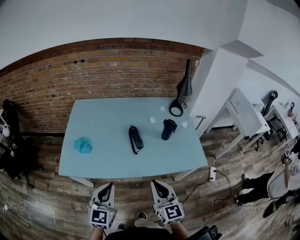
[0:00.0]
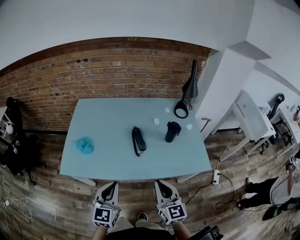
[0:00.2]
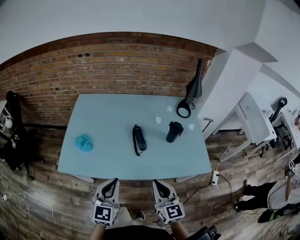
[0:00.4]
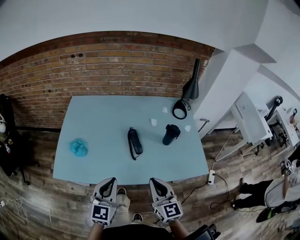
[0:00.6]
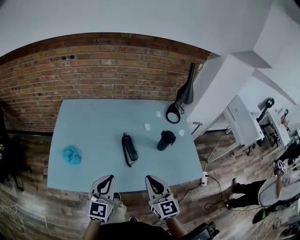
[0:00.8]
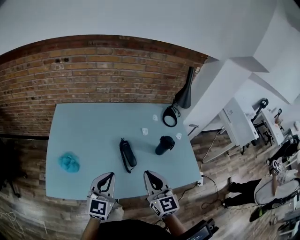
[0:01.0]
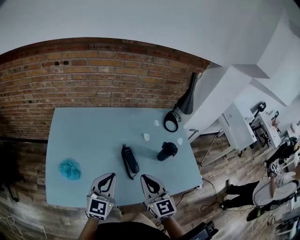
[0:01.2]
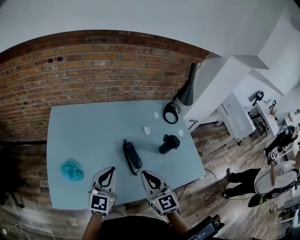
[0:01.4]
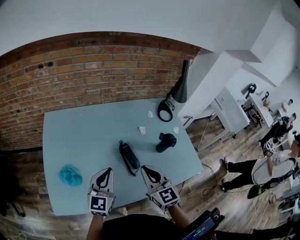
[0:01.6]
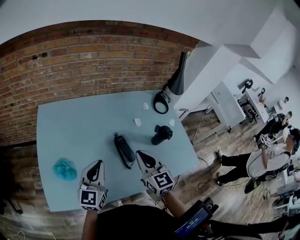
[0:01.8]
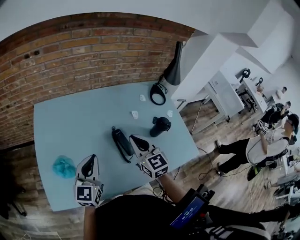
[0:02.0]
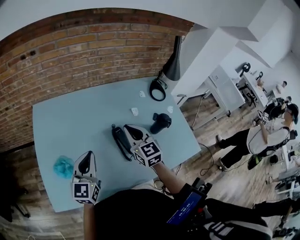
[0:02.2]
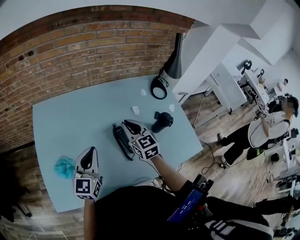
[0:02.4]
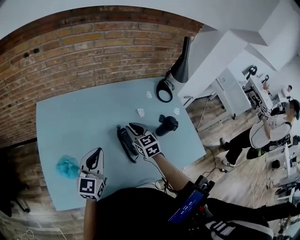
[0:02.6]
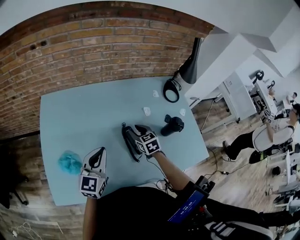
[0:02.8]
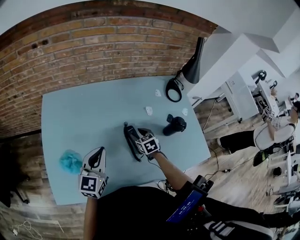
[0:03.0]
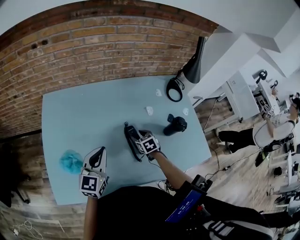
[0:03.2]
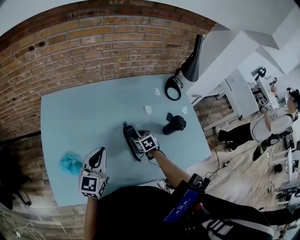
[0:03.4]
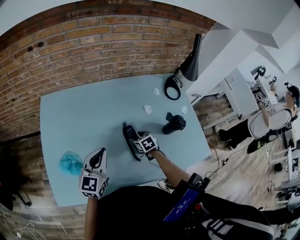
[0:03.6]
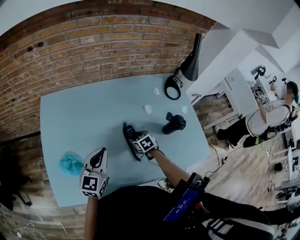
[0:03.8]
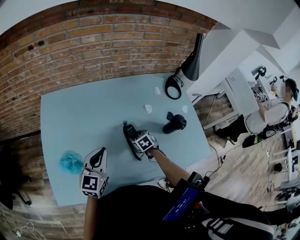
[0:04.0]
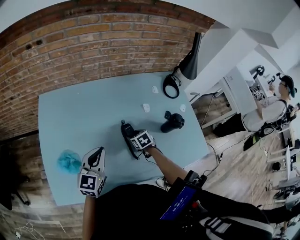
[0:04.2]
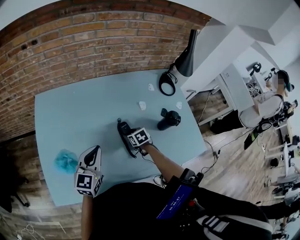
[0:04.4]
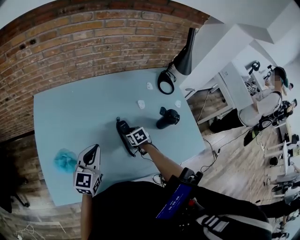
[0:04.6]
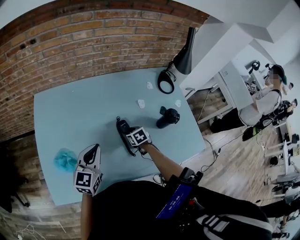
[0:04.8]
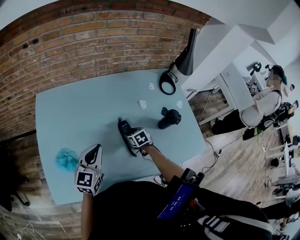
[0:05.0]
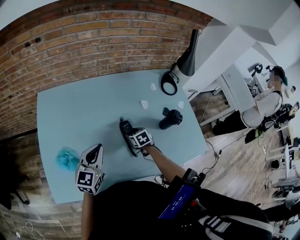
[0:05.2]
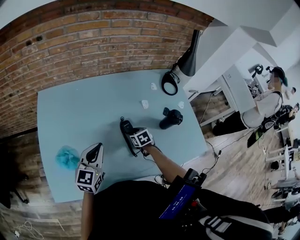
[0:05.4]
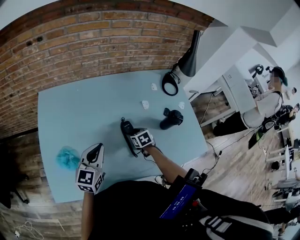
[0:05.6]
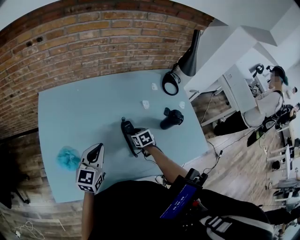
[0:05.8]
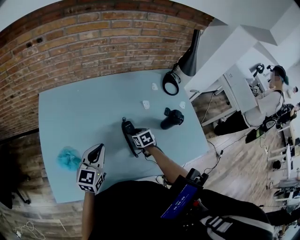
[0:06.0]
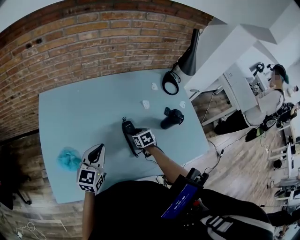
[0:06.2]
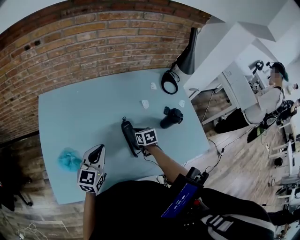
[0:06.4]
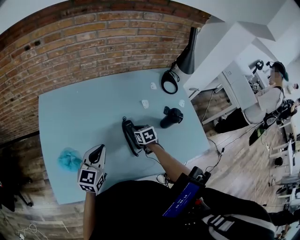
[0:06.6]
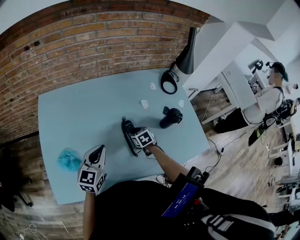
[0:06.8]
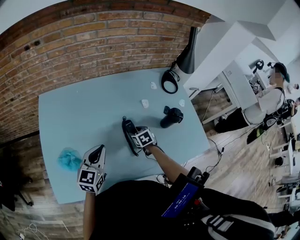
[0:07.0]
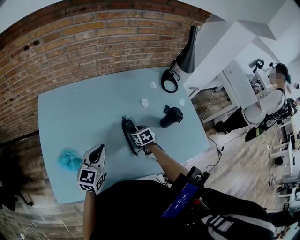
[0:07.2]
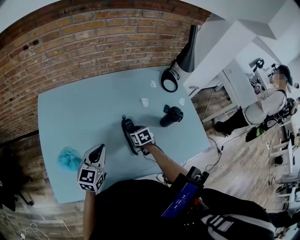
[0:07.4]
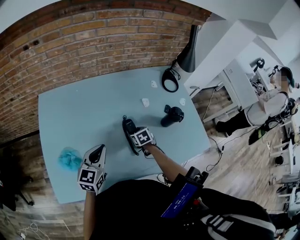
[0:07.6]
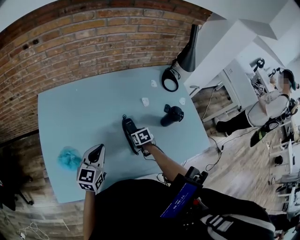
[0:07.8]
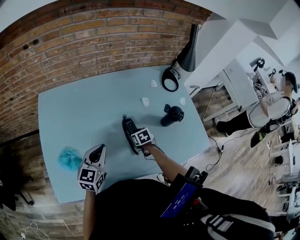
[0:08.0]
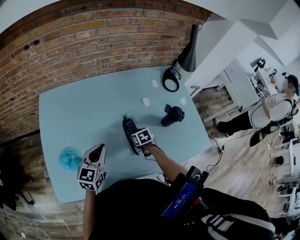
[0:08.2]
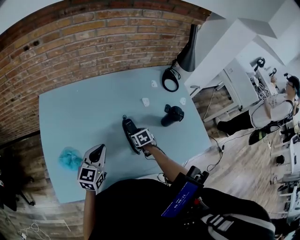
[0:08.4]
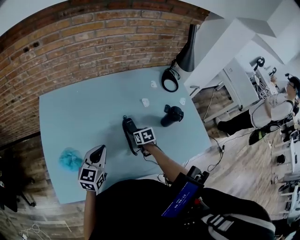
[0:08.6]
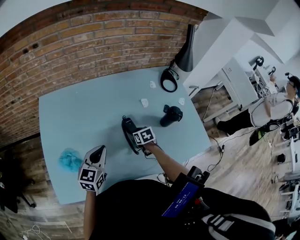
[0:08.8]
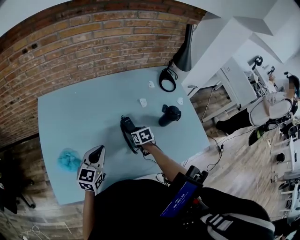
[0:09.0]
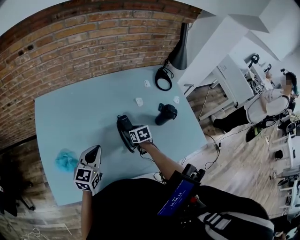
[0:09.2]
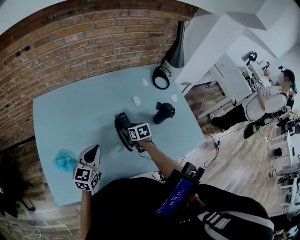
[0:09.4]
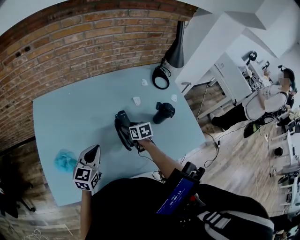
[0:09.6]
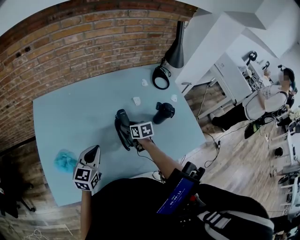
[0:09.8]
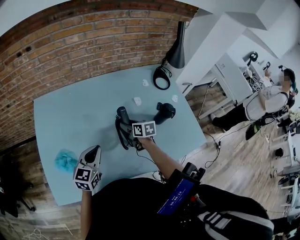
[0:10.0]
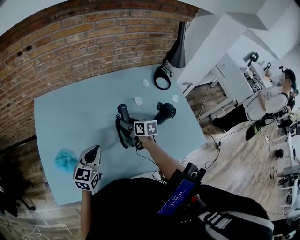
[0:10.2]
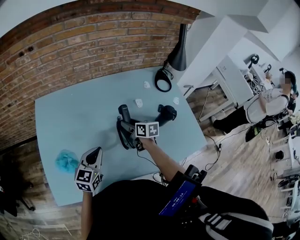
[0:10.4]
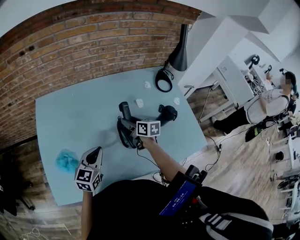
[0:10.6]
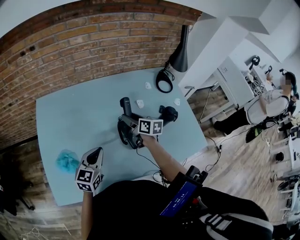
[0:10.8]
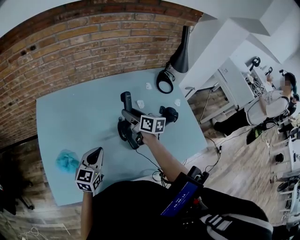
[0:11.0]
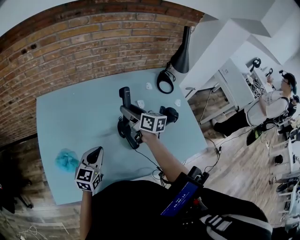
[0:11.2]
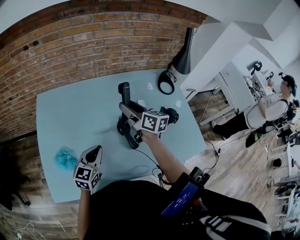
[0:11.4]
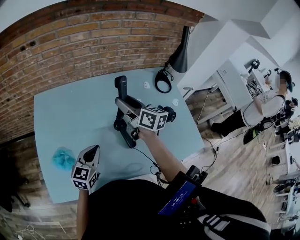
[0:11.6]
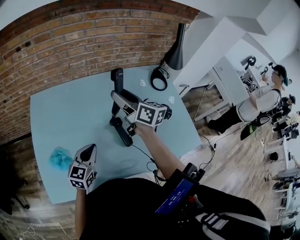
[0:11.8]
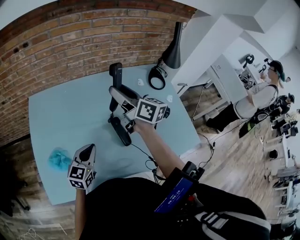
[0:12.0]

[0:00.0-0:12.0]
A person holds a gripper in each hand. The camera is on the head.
0:00.0 to 0:01.6: Both grippers travel together forward, some 30 cm.
0:01.6 to 0:03.0: The left gripper heads forward, covering some 5 cm. Meanwhile the right gripper travels downward and forward by some 30 cm, tips its fingers downward by roughly 30 degrees, and opens.
0:03.0 to 0:04.4: The right gripper goes approximately 5 cm downward.
0:04.4 to 0:06.0: There are only small adjustments of the grippers.
0:06.0 to 0:07.6: The right gripper closes, then reopens.
0:07.6 to 0:09.0: The grippers stay close to where they were, moving slightly.
0:09.0 to 0:10.4: The right gripper moves upward, about 10 cm, and changes its angle by some 30 degrees.
0:10.4 to 0:12.0: The right gripper moves upward, approximately 25 cm, and tilts its fingers approximately 30 degrees upward.

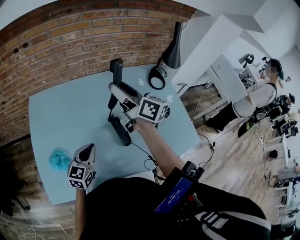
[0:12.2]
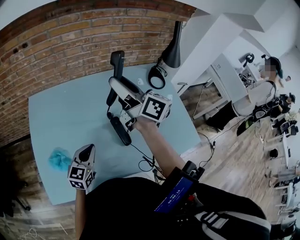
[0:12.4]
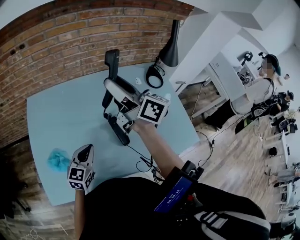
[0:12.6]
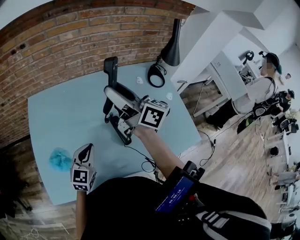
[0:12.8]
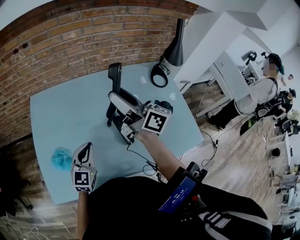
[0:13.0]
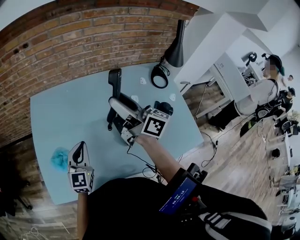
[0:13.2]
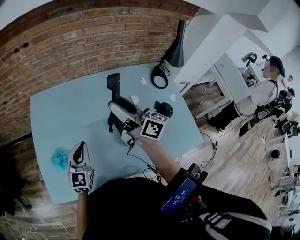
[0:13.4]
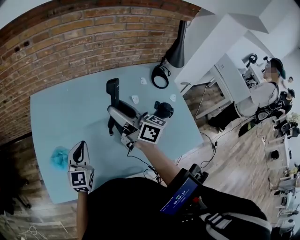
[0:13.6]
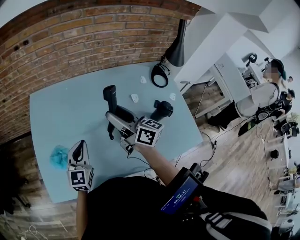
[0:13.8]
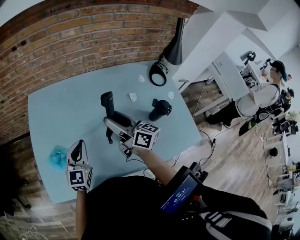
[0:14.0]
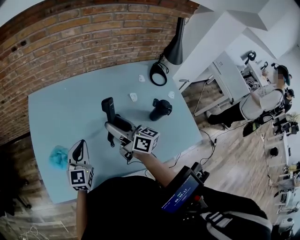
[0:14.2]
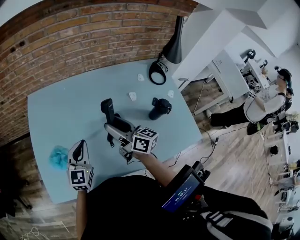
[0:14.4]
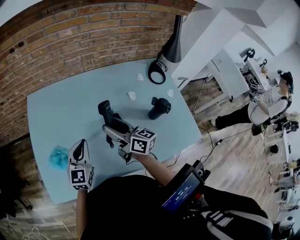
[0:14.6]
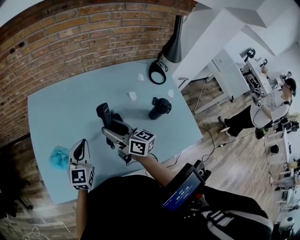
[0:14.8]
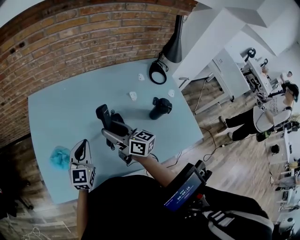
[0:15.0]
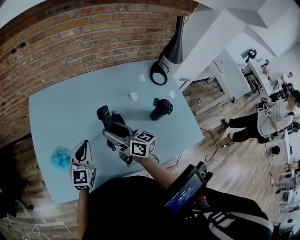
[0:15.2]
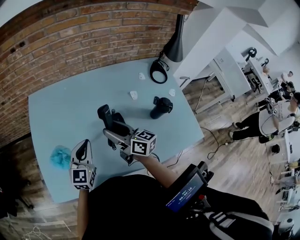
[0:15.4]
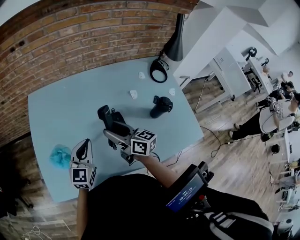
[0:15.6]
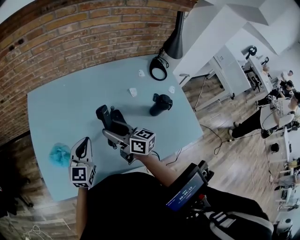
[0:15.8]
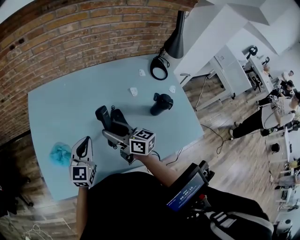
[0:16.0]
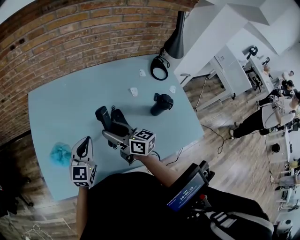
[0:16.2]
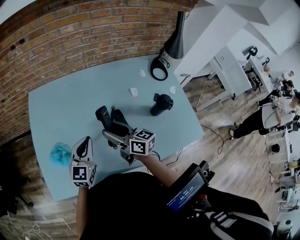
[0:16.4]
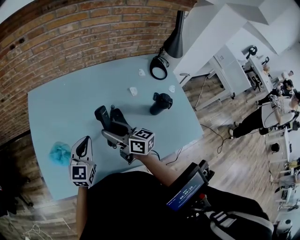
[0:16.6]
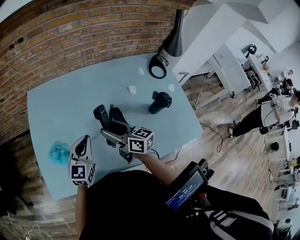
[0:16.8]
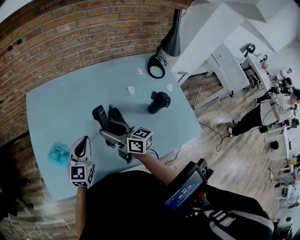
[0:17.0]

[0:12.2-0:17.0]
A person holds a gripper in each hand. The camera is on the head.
0:12.2 to 0:13.8: The right gripper is displaced downward and backward by roughly 10 cm. The left gripper ends up about 5 cm from where it was.
0:13.8 to 0:15.4: The right gripper is displaced downward by approximately 10 cm.
0:15.4 to 0:17.0: There are only small adjustments of the grippers.

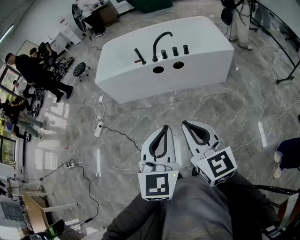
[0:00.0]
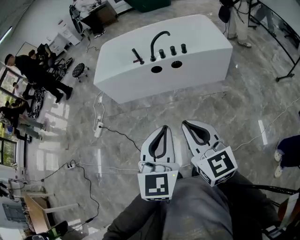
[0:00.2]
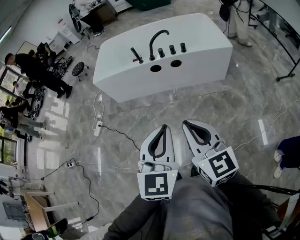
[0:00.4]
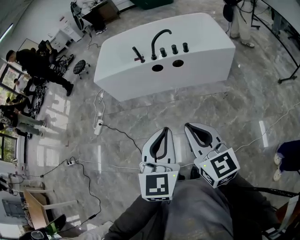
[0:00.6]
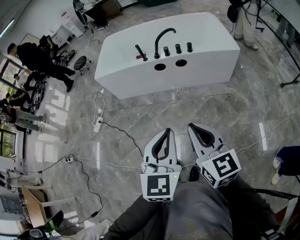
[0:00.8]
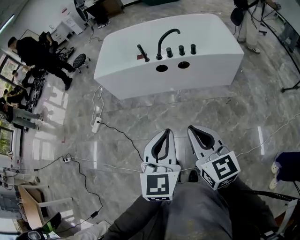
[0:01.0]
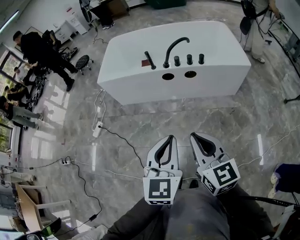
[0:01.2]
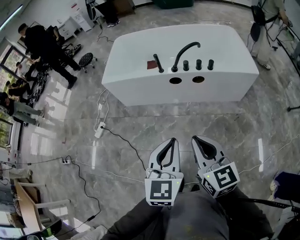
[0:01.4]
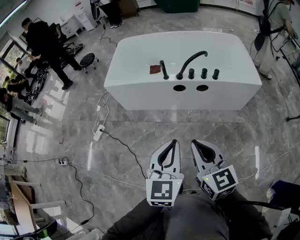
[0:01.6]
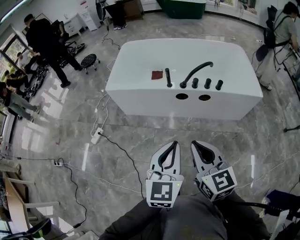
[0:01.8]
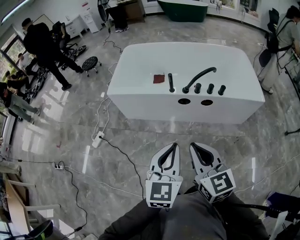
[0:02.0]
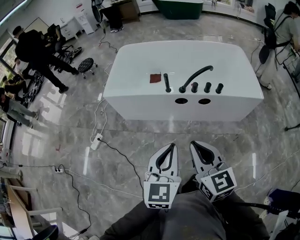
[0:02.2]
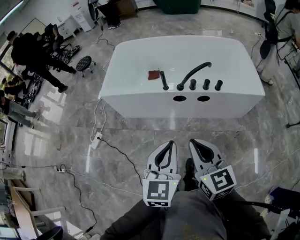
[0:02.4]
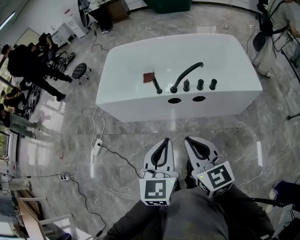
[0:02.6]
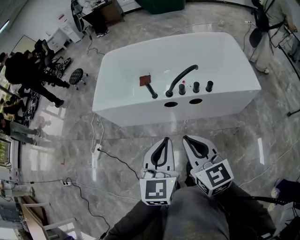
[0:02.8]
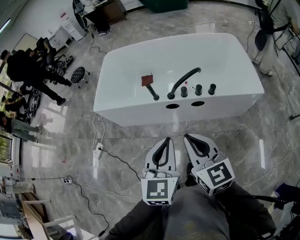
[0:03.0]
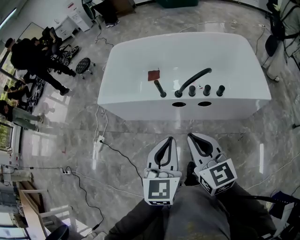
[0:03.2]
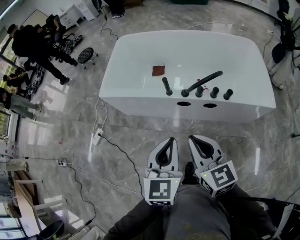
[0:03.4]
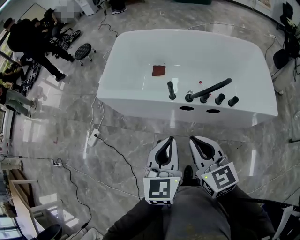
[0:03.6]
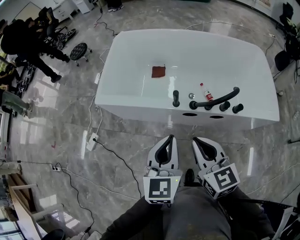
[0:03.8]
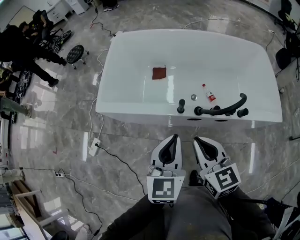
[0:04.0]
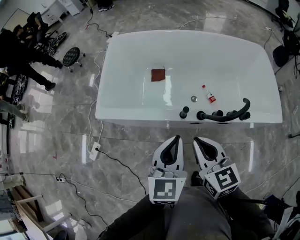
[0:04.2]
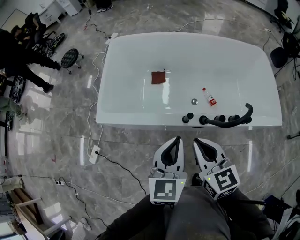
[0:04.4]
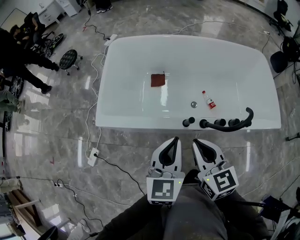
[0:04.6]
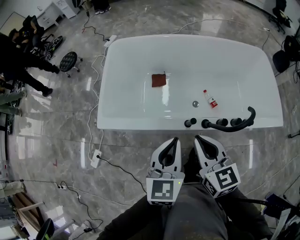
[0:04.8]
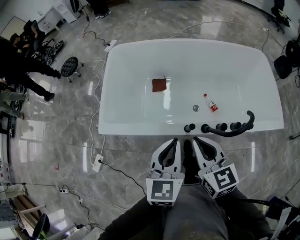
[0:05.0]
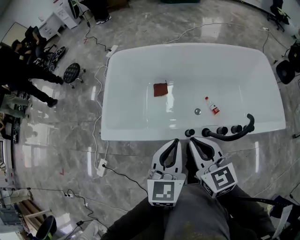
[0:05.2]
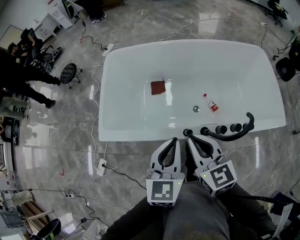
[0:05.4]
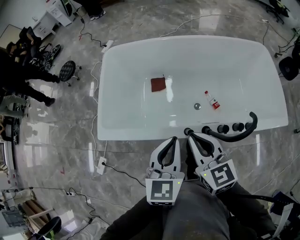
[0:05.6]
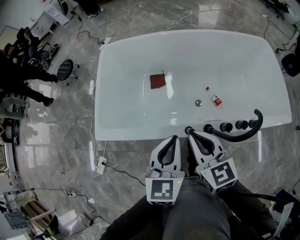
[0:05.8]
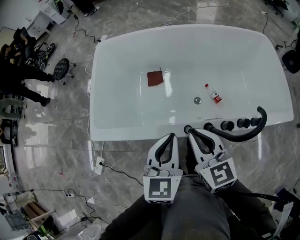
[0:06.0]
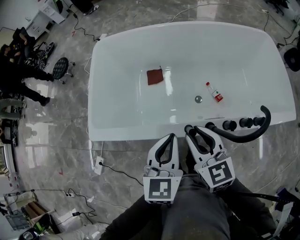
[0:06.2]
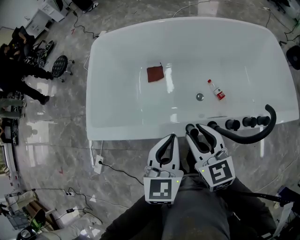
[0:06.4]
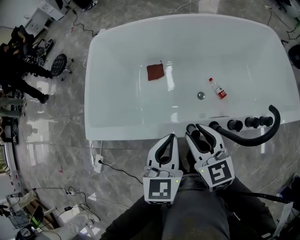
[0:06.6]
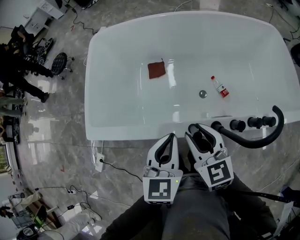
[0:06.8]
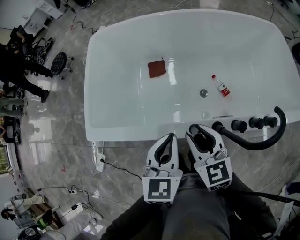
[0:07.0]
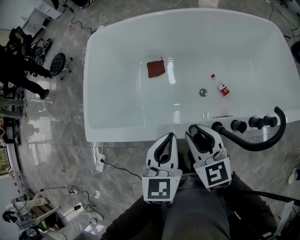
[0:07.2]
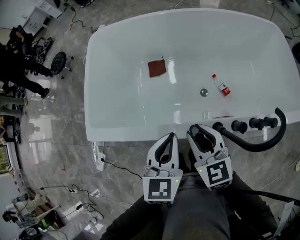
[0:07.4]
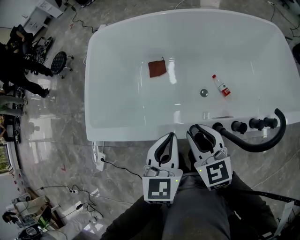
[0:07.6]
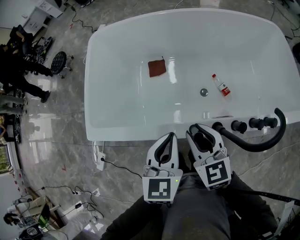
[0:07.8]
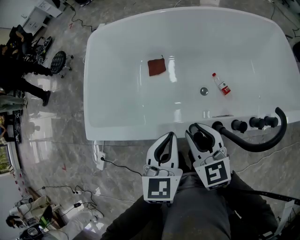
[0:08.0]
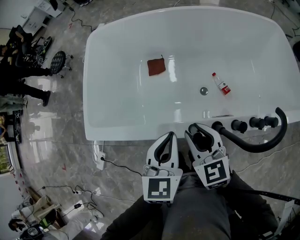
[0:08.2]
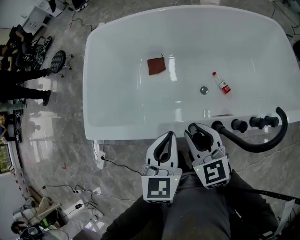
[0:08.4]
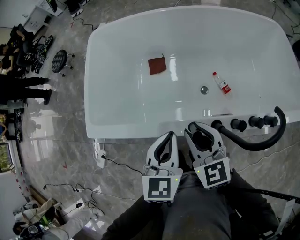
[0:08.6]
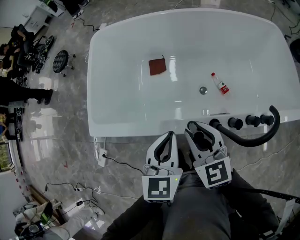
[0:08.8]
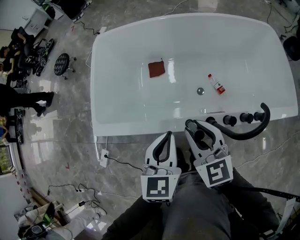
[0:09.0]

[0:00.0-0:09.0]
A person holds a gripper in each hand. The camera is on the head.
0:00.0 to 0:01.6: Both grippers travel together forward, approximately 25 cm.
0:01.6 to 0:03.0: The right gripper travels forward by roughly 20 cm. Meanwhile the left gripper heads forward and to the right, covering some 20 cm.
0:03.0 to 0:04.4: Both grippers travel together forward and to the left, some 35 cm.
0:04.4 to 0:06.0: The grippers both shift forward and downward by approximately 15 cm.
0:06.0 to 0:07.6: Both grippers travel together downward, about 10 cm. The right gripper opens.
0:07.6 to 0:09.0: Both grippers travel together upward, roughly 10 cm.
